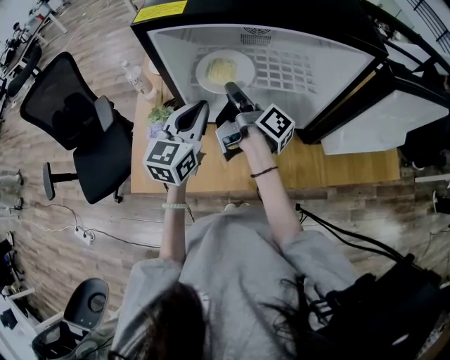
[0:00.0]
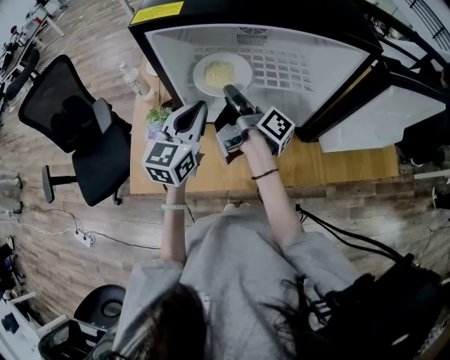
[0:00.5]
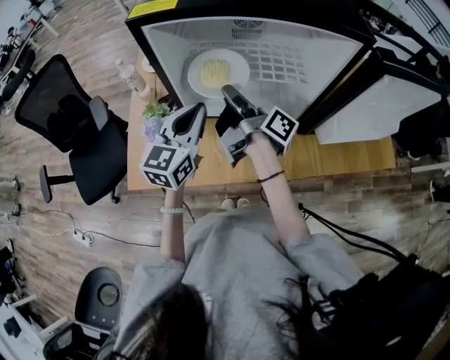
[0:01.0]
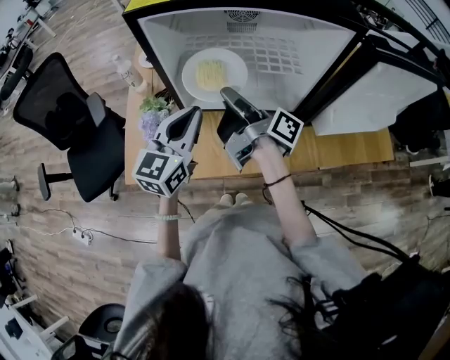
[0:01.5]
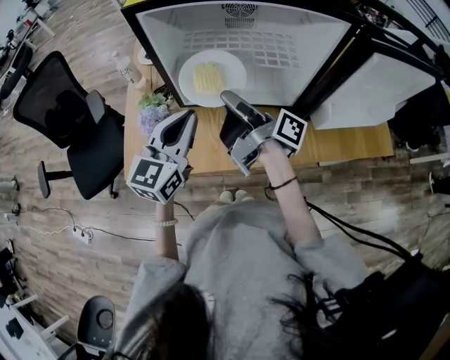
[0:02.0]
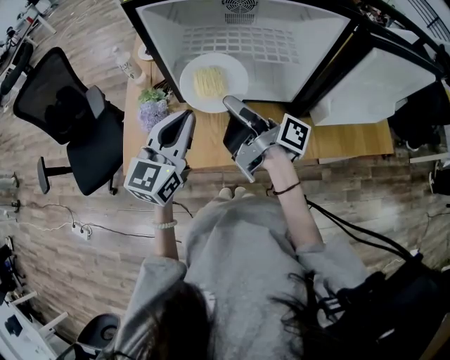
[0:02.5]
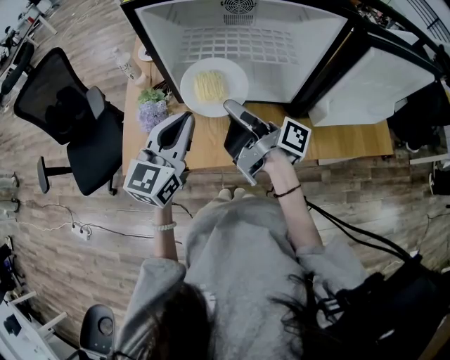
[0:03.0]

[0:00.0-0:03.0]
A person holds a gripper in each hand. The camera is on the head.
0:00.0 to 0:01.5: The two grippers go approximately 5 cm backward.
0:01.5 to 0:03.0: Both grippers travel together backward, approximately 5 cm.

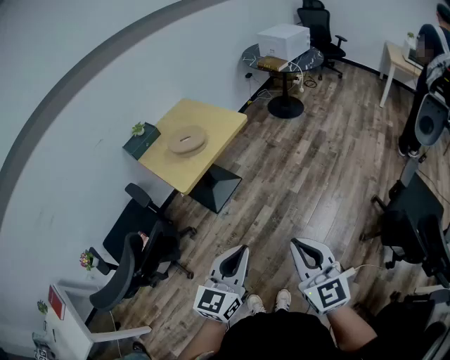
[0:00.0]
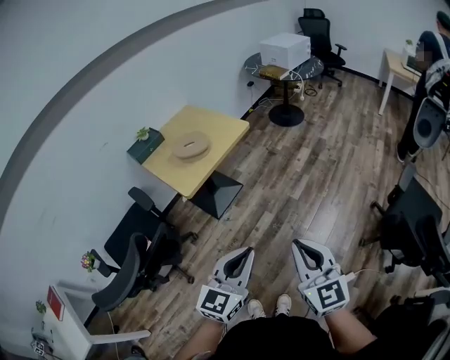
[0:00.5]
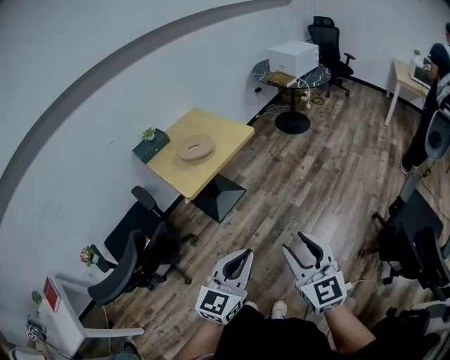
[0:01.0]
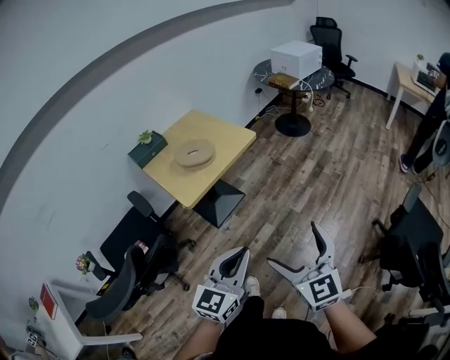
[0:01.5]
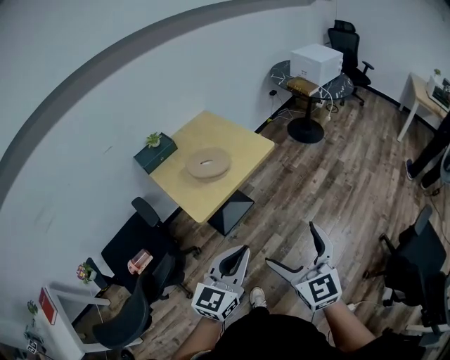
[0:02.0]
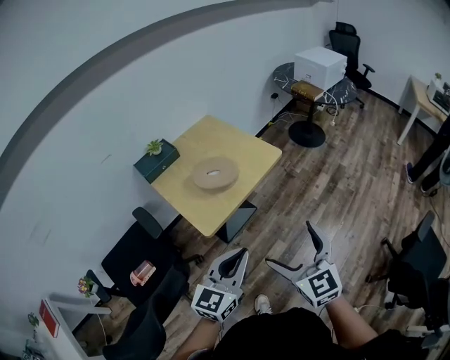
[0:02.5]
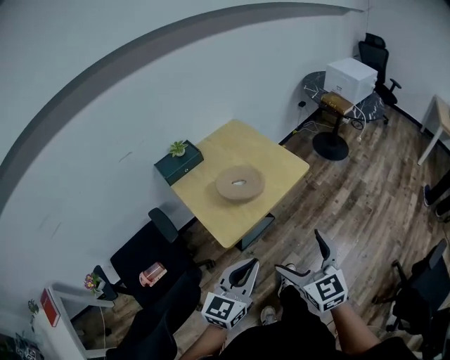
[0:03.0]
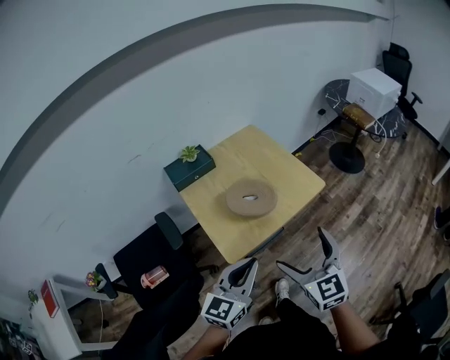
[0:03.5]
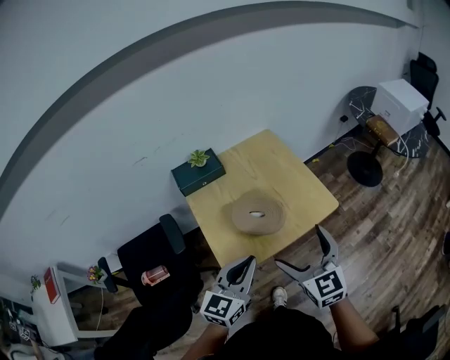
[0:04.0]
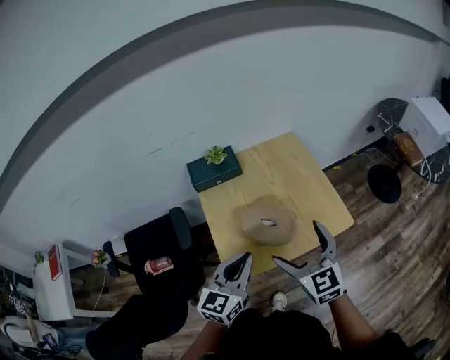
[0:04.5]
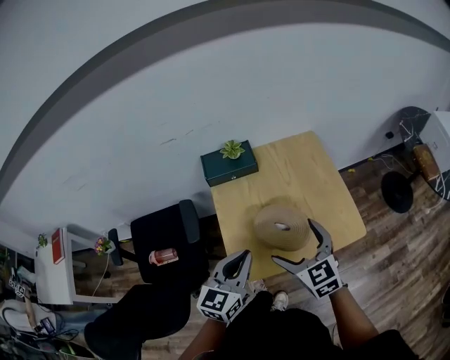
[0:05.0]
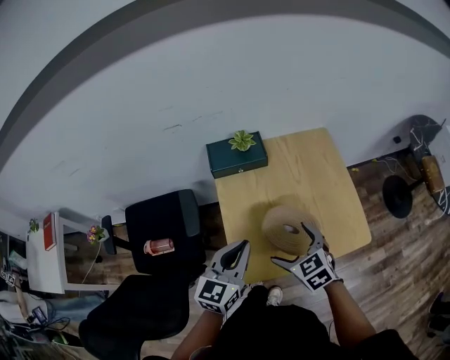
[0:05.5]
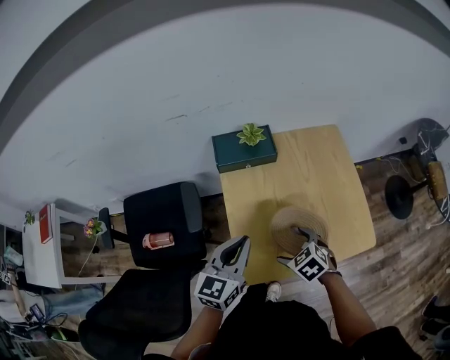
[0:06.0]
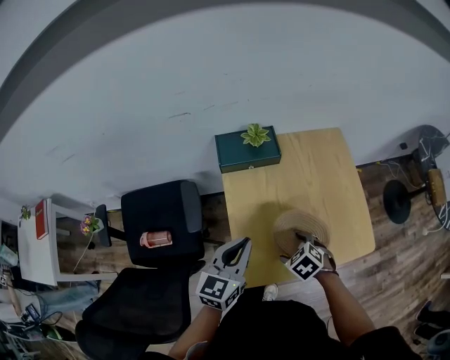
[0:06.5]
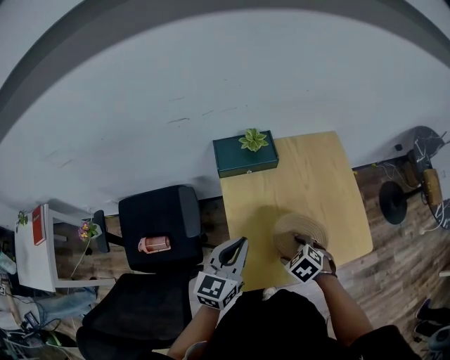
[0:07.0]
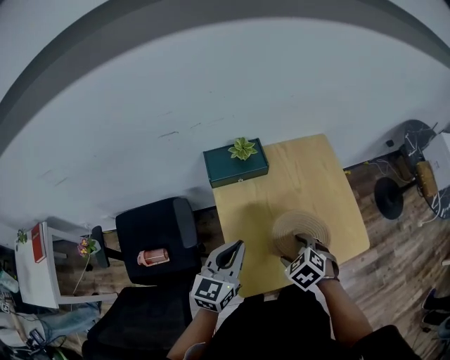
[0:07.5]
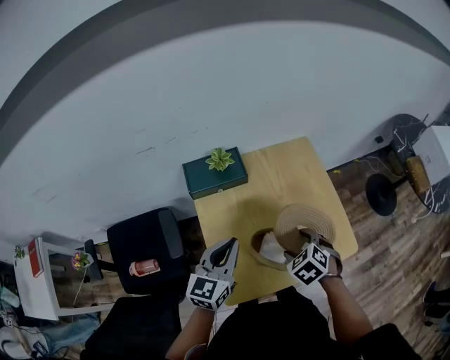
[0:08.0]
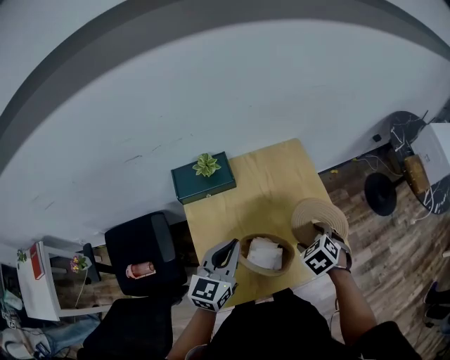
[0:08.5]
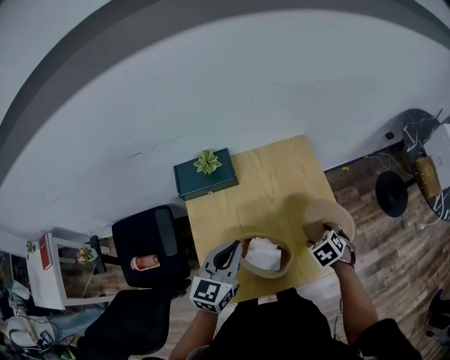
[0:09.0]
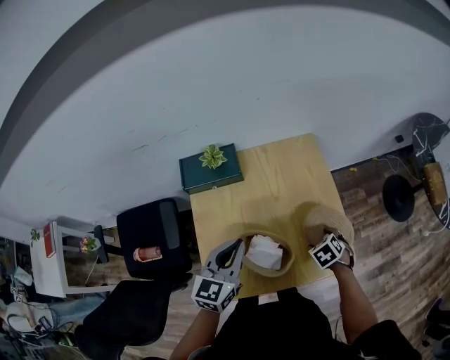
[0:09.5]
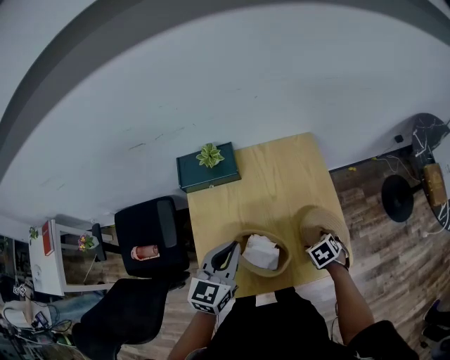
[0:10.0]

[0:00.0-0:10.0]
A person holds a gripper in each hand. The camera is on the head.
0:00.0 to 0:02.0: Both grippers travel together forward and to the left, approximately 20 cm. The right gripper opens.
0:02.0 to 0:04.0: The grippers both shift forward by about 35 cm.
0:04.0 to 0:06.0: The right gripper heads downward, covering some 20 cm, and tilts its fingers some 50 degrees downward; the left gripper moves approximately 20 cm, and rotates about 20 degrees.
0:06.0 to 0:08.0: The left gripper is displaced forward by about 5 cm, while the right gripper travels to the right, upward and forward by some 10 cm.
0:08.0 to 0:10.0: The right gripper is displaced to the right and downward by some 20 cm. The left gripper travels to the right by roughly 10 cm.

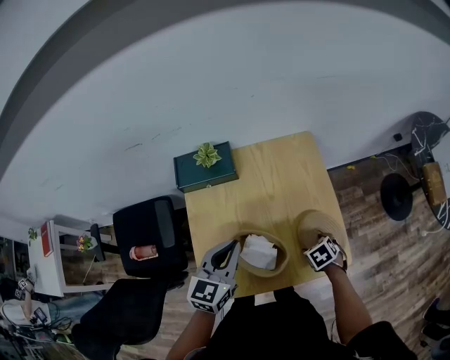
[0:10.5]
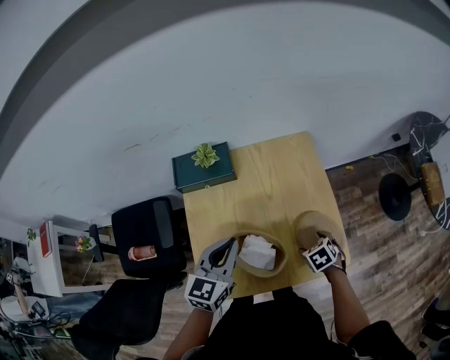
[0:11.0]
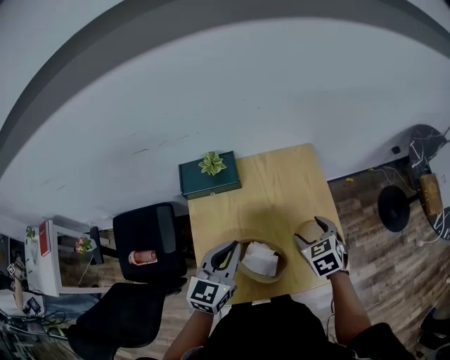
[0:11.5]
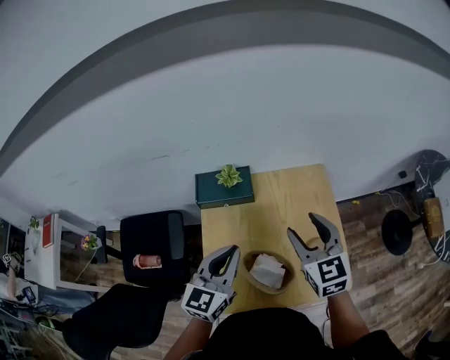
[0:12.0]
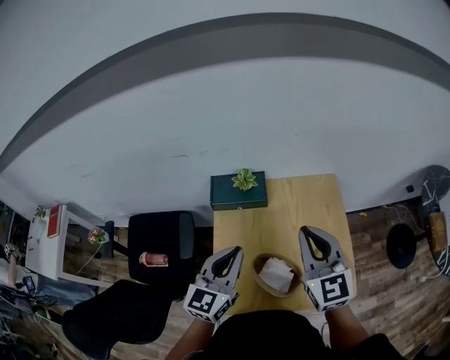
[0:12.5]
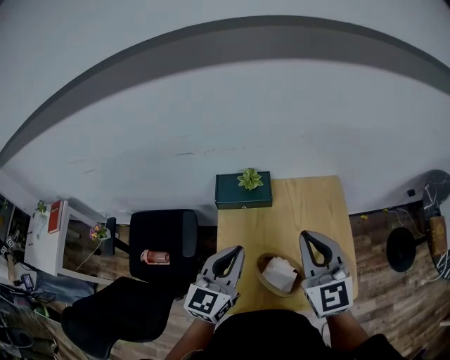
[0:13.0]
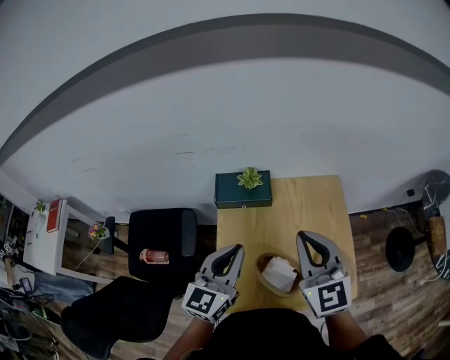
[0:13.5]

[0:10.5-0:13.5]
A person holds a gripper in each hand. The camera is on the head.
0:10.5 to 0:12.0: The left gripper moves upward, roughly 10 cm; the right gripper heads upward, covering some 30 cm, and tilts its fingers some 60 degrees upward.
0:12.0 to 0:13.5: The right gripper moves to the left and upward, some 10 cm, and closes its fingers; the left gripper travels to the left by approximately 5 cm.

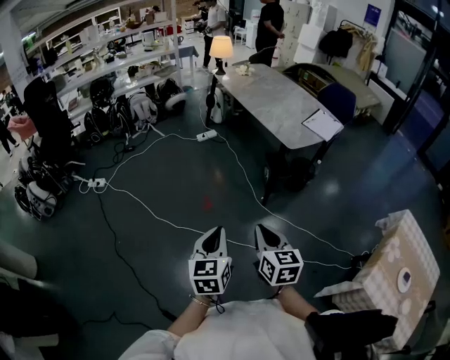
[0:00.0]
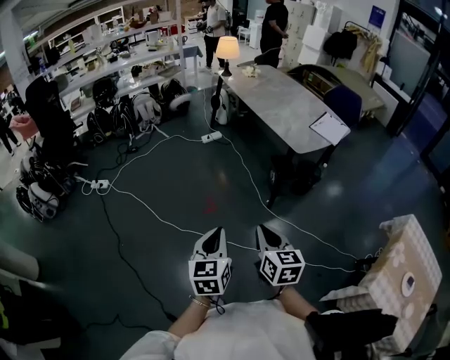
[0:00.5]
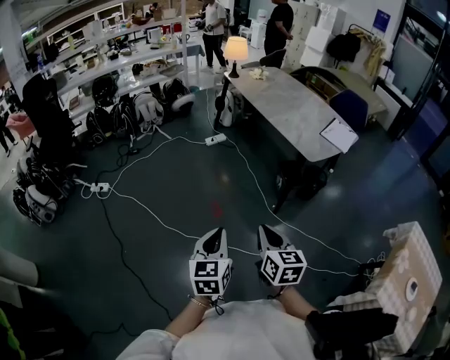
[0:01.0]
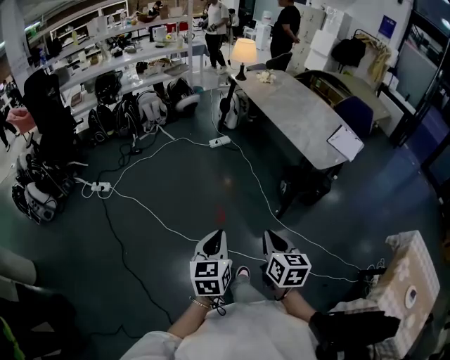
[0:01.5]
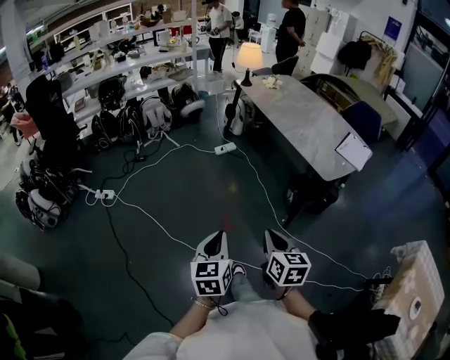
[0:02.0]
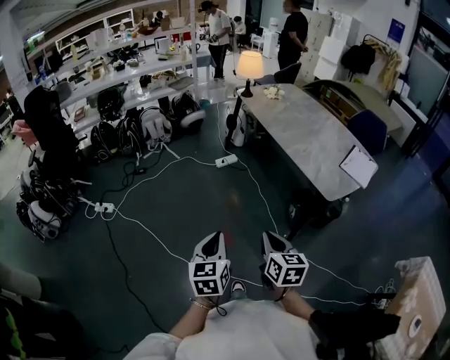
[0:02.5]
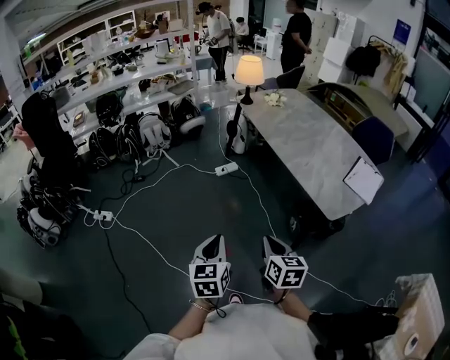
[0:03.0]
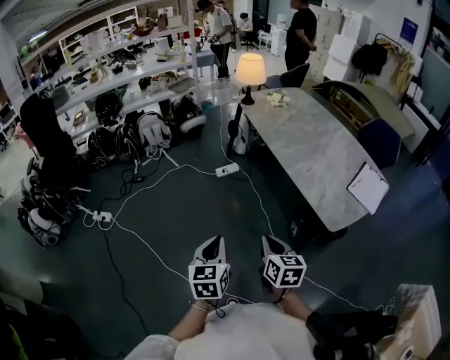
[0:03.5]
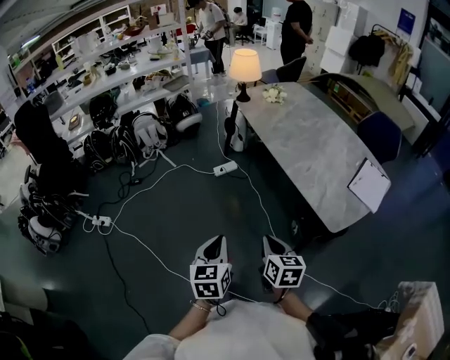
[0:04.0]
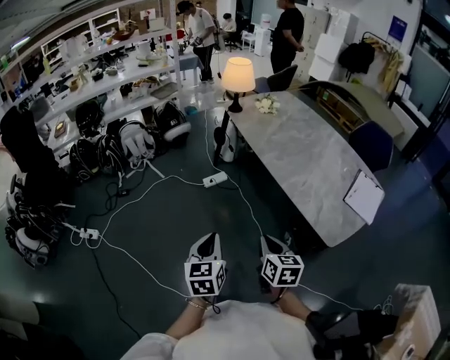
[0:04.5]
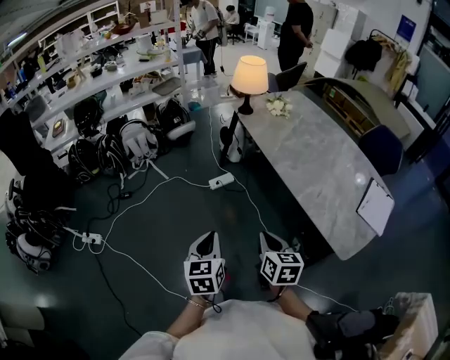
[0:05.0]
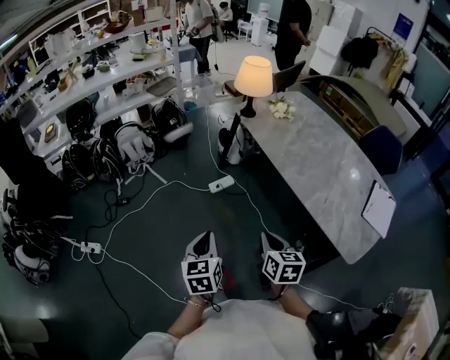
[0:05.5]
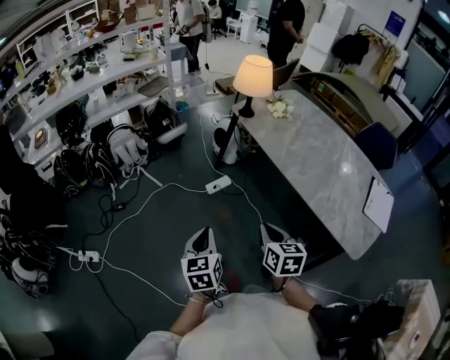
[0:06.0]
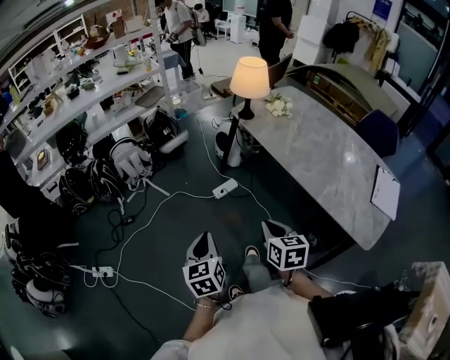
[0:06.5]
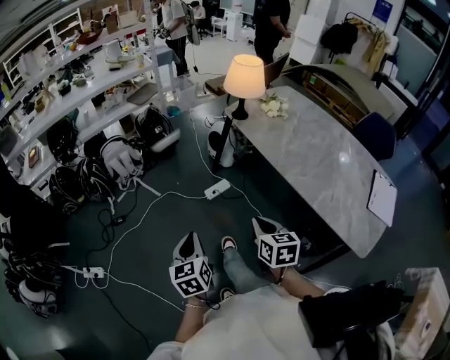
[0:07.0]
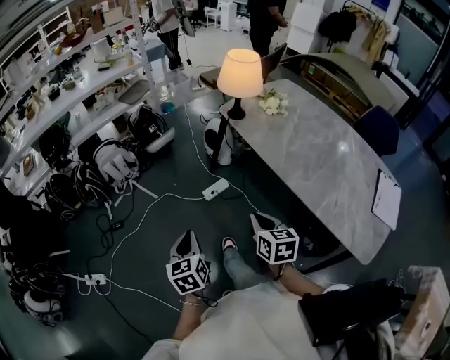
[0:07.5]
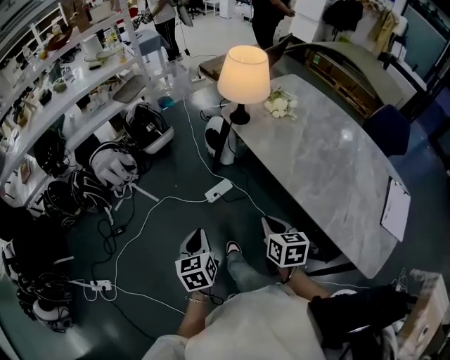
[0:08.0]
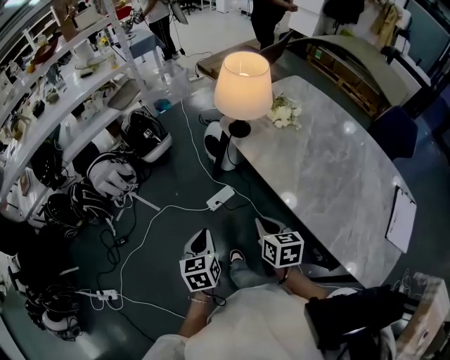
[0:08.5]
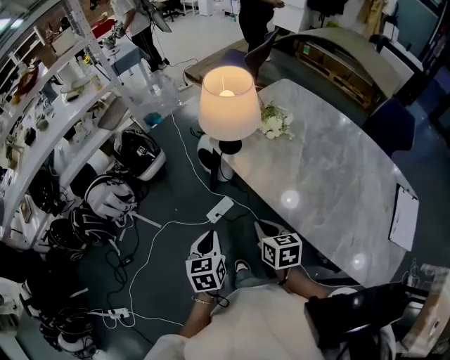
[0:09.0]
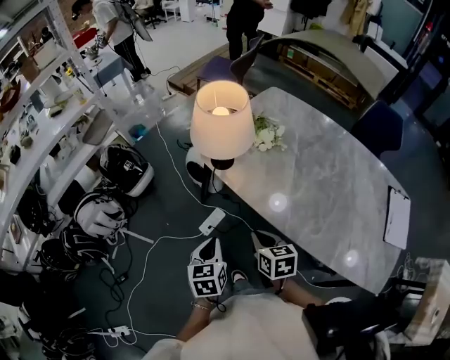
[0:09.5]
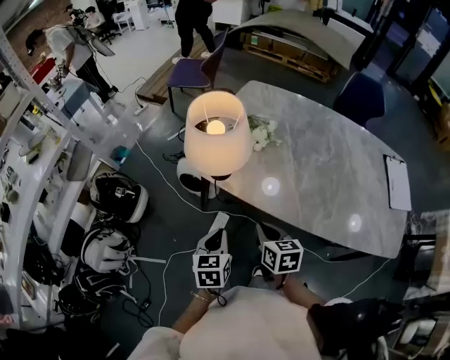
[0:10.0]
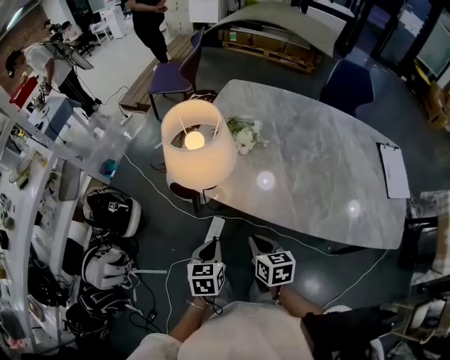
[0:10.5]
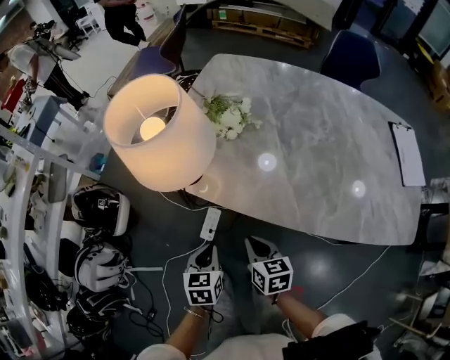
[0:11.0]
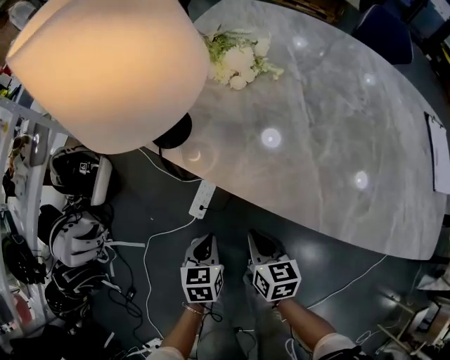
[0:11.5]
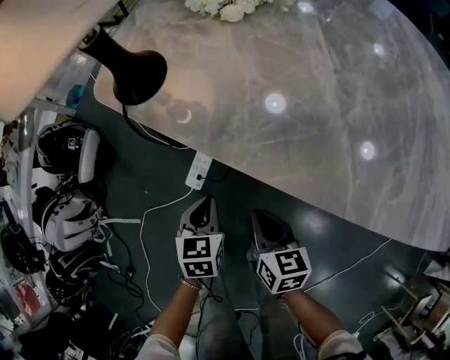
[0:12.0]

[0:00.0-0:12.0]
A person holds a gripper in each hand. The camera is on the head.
0:00.0 to 0:02.0: Both grippers move forward and to the left, roughly 25 cm.
0:02.0 to 0:04.0: The two grippers go some 30 cm forward.
0:04.0 to 0:06.0: The two grippers go about 35 cm forward and to the left.
0:06.0 to 0:08.0: The grippers both shift forward by approximately 25 cm.
0:08.0 to 0:10.0: The right gripper moves about 25 cm, and changes its angle by roughly 30 degrees. Meanwhile the left gripper ends up approximately 35 cm from where it was, and changes its angle by about 40 degrees.
0:10.0 to 0:12.0: Both grippers move downward, about 30 cm.
